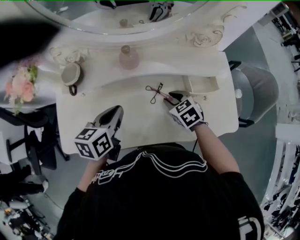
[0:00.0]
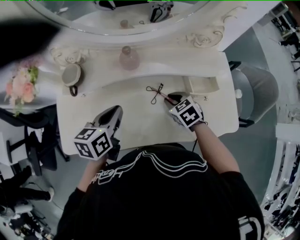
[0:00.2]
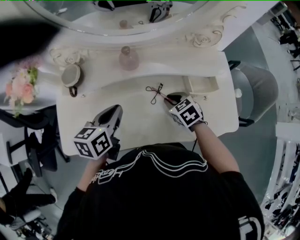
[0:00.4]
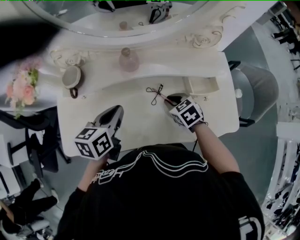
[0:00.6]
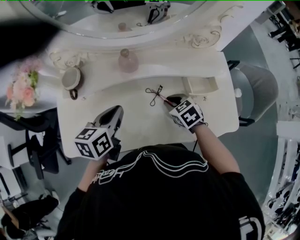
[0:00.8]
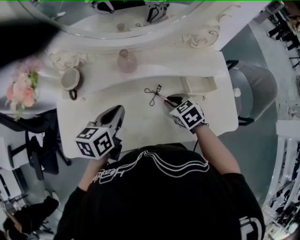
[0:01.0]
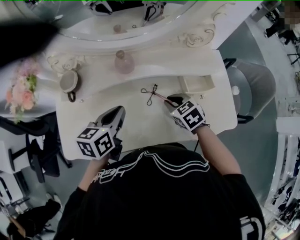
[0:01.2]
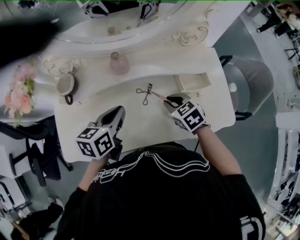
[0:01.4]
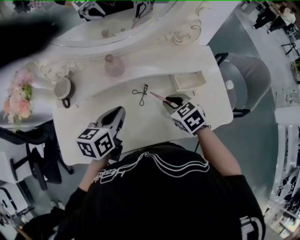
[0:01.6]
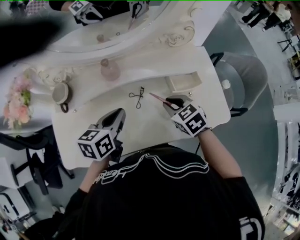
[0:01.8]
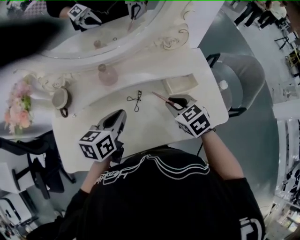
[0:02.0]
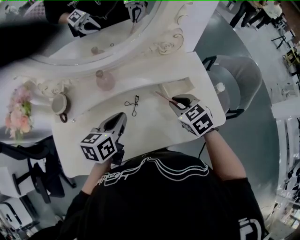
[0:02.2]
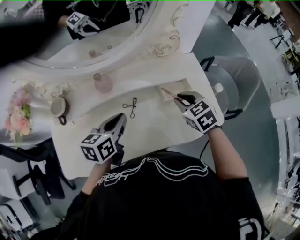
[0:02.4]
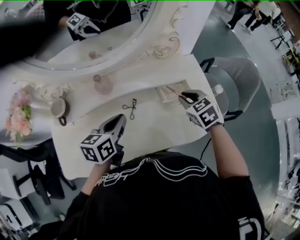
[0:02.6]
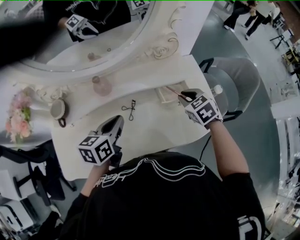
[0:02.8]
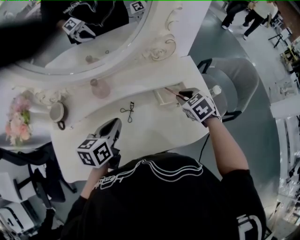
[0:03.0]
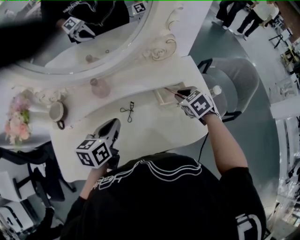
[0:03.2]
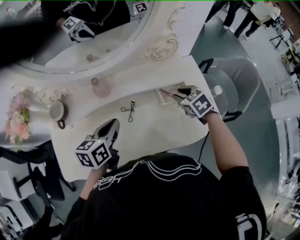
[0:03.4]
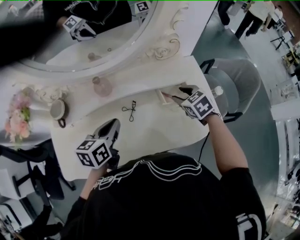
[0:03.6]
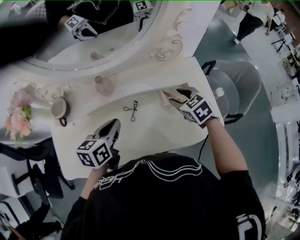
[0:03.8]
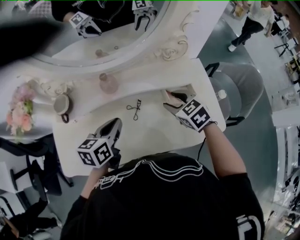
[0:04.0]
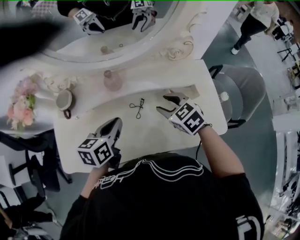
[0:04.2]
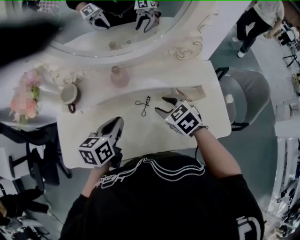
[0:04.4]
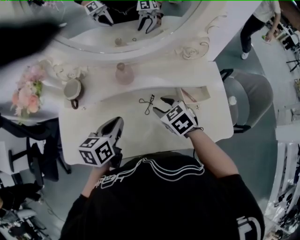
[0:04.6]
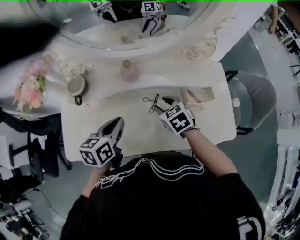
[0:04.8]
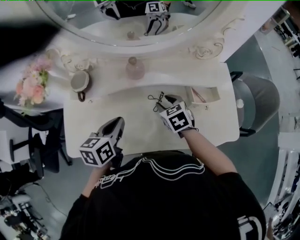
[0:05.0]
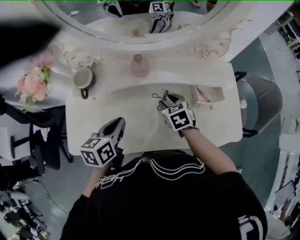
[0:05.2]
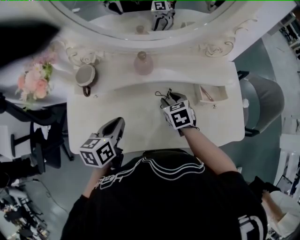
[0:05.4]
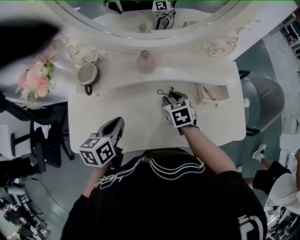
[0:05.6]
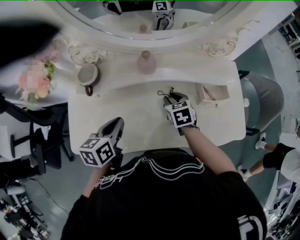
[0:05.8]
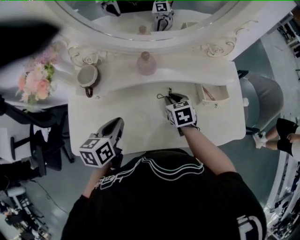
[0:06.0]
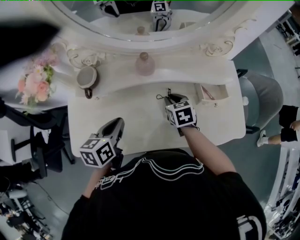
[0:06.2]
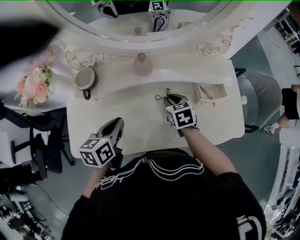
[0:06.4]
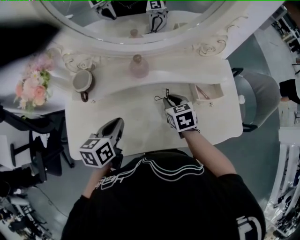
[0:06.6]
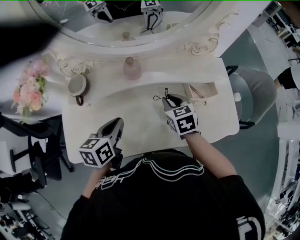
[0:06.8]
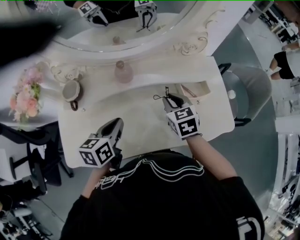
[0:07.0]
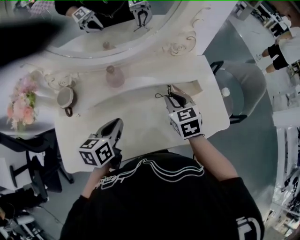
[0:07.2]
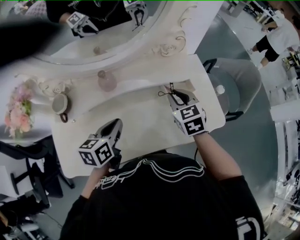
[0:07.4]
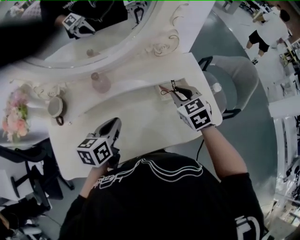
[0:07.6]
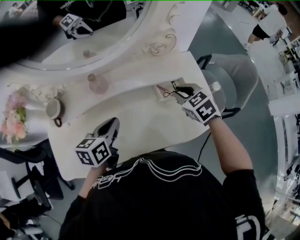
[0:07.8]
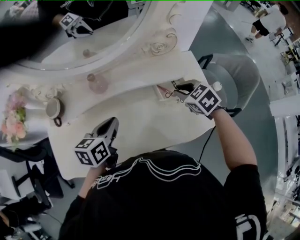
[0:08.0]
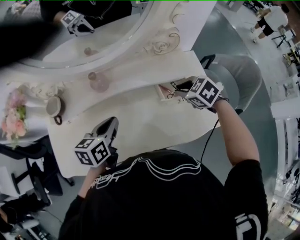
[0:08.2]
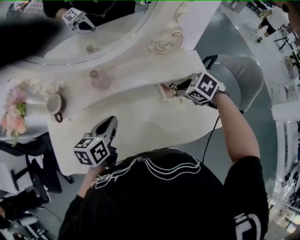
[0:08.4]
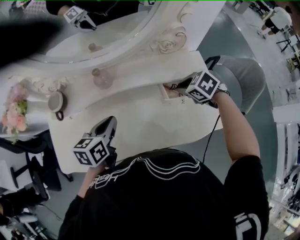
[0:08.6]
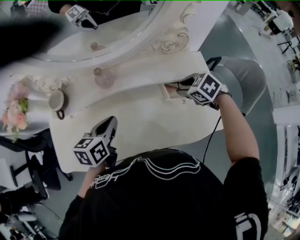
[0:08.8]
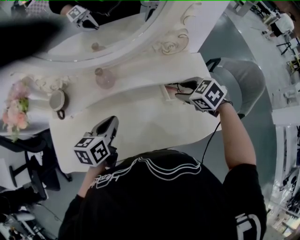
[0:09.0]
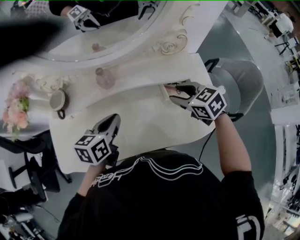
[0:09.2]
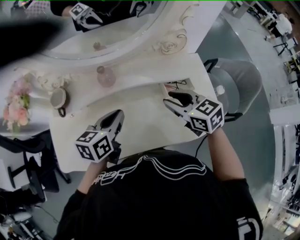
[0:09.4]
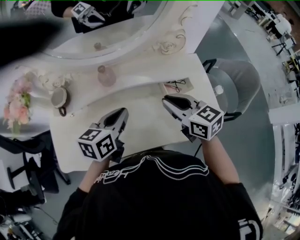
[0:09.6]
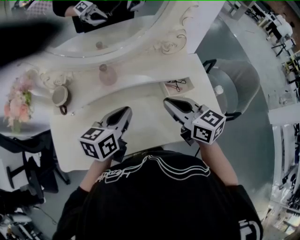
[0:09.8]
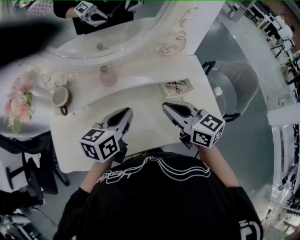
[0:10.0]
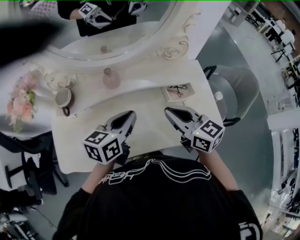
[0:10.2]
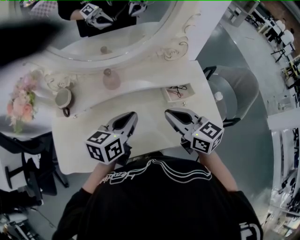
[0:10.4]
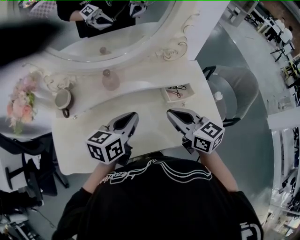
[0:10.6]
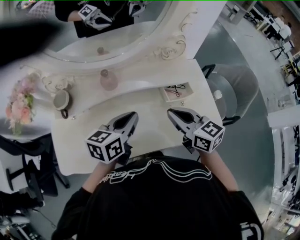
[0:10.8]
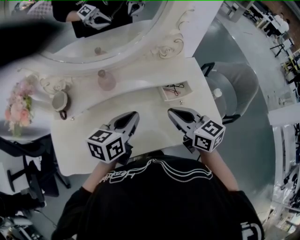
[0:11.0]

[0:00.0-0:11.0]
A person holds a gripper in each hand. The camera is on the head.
0.0 to 1.6 s: The left gripper moves approximately 5 cm; the right gripper is displaced upward by approximately 5 cm.
1.6 to 3.2 s: The right gripper heads to the right and forward, covering about 15 cm.
3.2 to 4.8 s: The left gripper heads to the left, covering some 10 cm. Meanwhile the right gripper heads to the left, covering roughly 20 cm, and opens.
4.8 to 6.2 s: The left gripper moves to the left, some 5 cm. The right gripper closes up.
6.2 to 7.8 s: The left gripper moves to the right, approximately 15 cm, while the right gripper is displaced to the right and upward by approximately 25 cm.
7.8 to 9.4 s: The right gripper travels to the left and upward by some 10 cm, and rotates approximately 30 degrees.
9.4 to 11.0 s: The right gripper ends up some 5 cm from where it was, and closes its fingers; the left gripper shifts about 5 cm to the right.

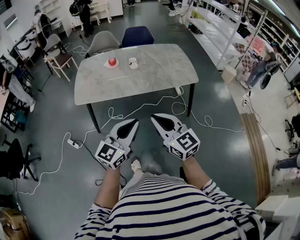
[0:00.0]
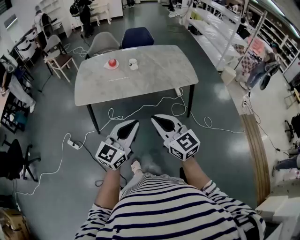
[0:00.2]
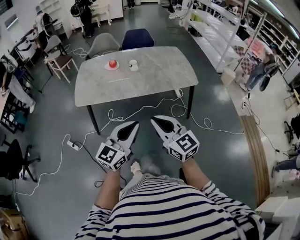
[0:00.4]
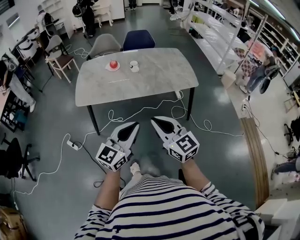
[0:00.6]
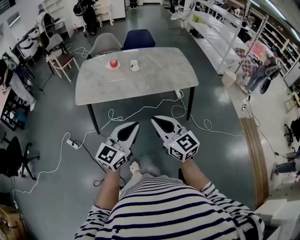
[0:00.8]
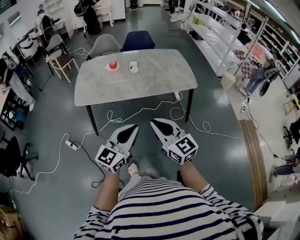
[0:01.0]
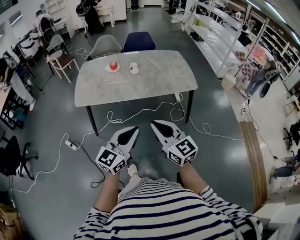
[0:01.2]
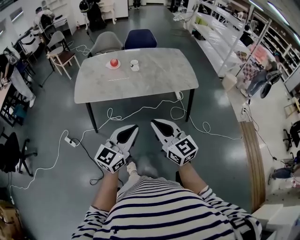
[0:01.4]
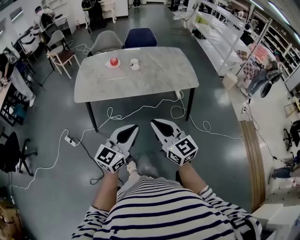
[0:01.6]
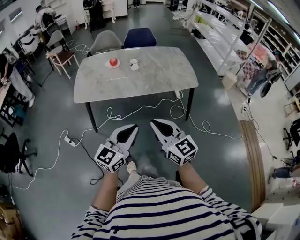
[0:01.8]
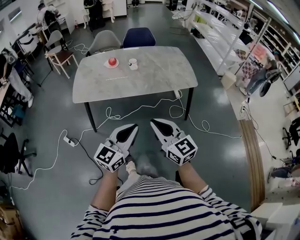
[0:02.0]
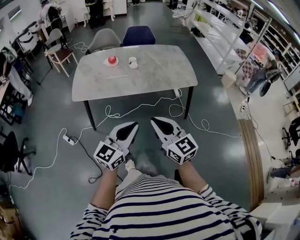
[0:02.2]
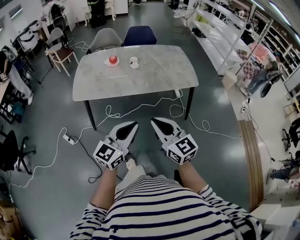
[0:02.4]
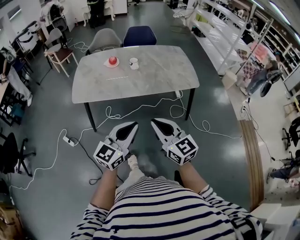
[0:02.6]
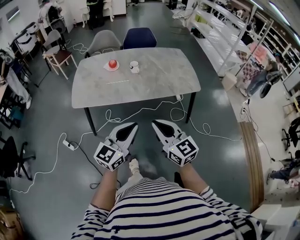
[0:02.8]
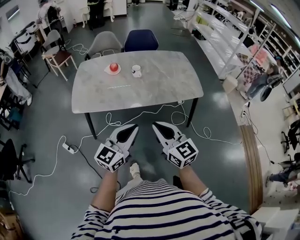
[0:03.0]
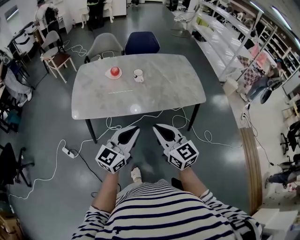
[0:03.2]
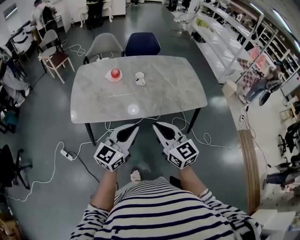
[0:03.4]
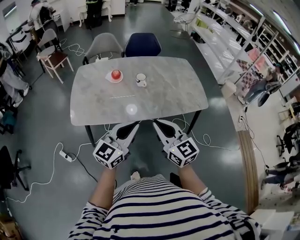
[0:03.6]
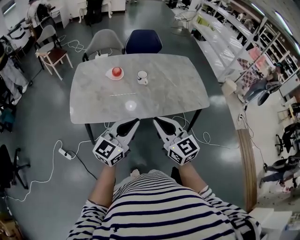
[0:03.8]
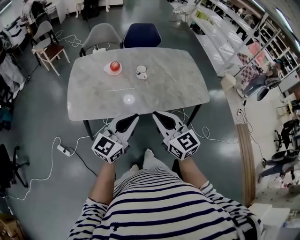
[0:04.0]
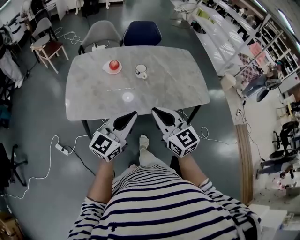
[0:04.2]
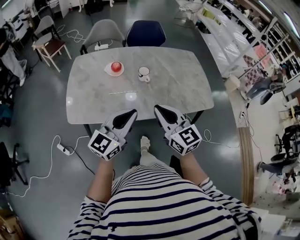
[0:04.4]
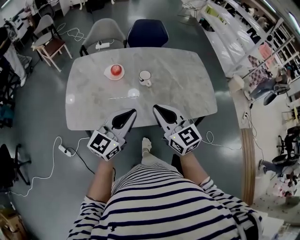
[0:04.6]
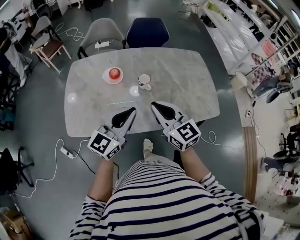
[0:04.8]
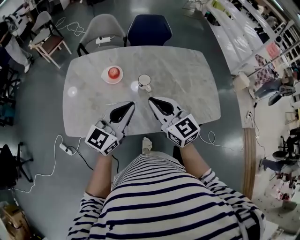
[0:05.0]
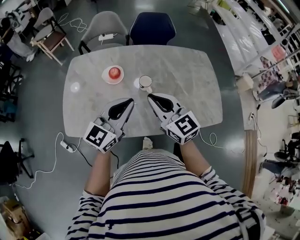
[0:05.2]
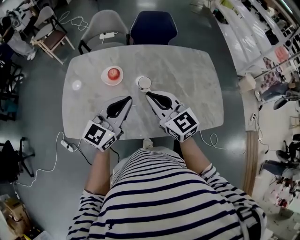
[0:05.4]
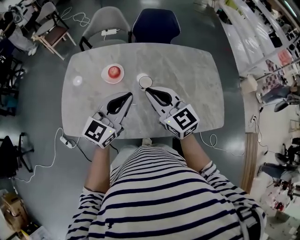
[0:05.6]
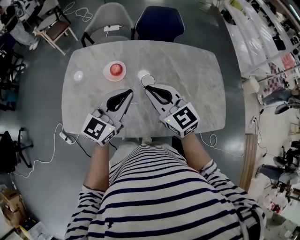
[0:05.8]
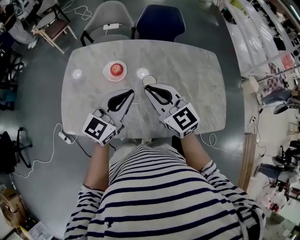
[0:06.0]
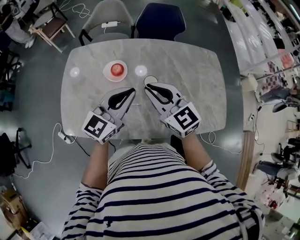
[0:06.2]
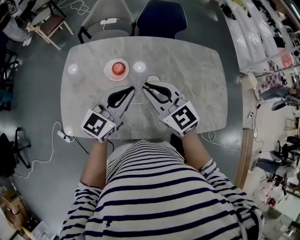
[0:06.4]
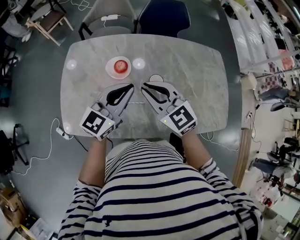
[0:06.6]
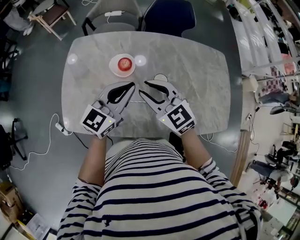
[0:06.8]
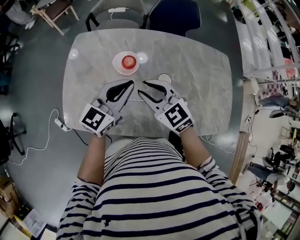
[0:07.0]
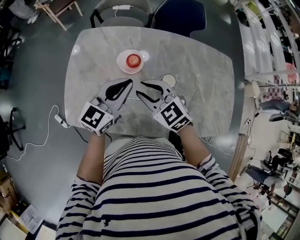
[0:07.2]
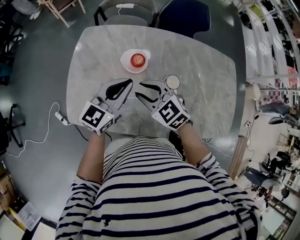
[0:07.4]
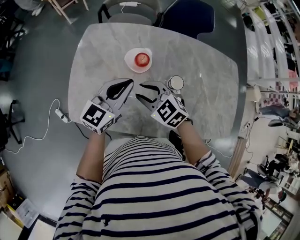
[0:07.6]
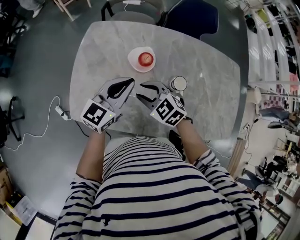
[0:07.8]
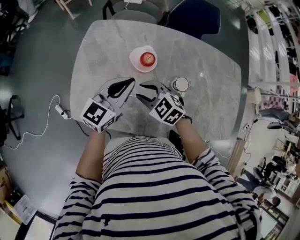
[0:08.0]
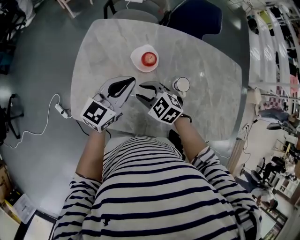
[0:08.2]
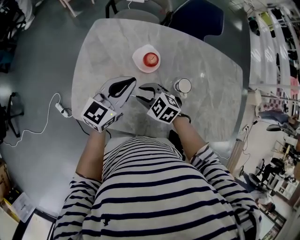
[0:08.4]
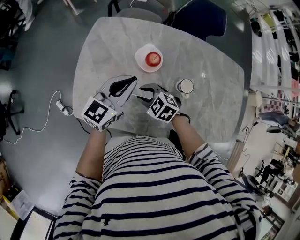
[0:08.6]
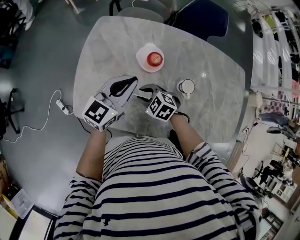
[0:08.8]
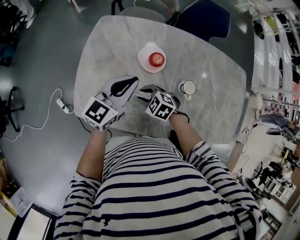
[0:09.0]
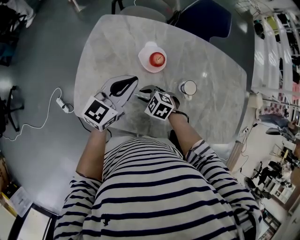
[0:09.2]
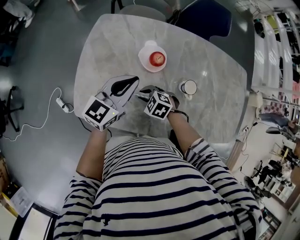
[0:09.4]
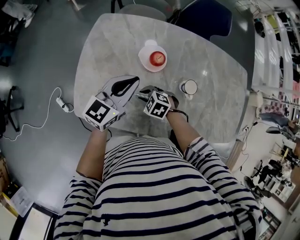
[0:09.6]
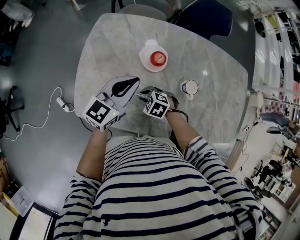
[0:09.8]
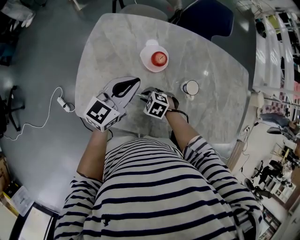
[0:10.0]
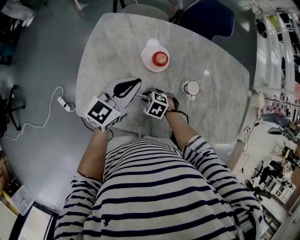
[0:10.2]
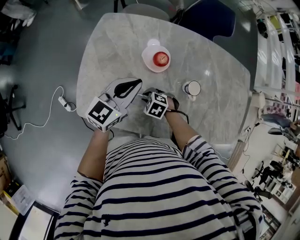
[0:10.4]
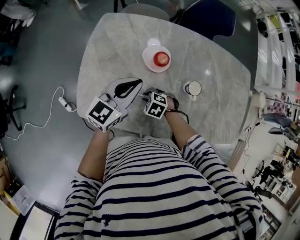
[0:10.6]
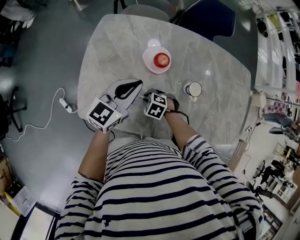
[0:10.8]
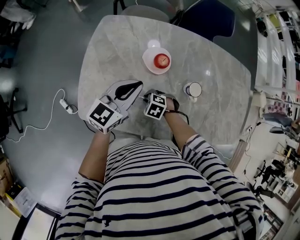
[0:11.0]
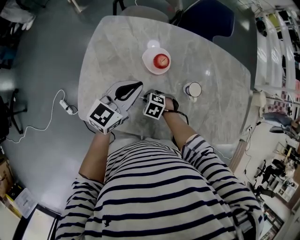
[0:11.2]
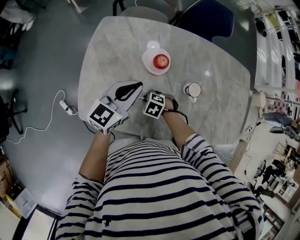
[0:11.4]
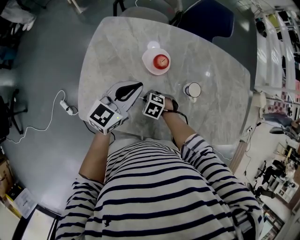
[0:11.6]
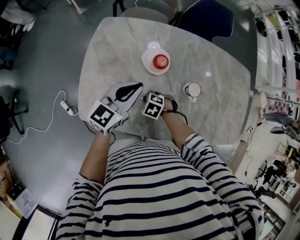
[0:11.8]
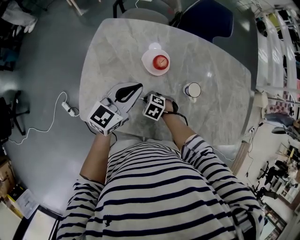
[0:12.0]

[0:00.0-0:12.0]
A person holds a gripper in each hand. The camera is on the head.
0.0 to 1.6 s: The grippers make only small movements.
1.6 to 3.0 s: Both grippers move forward, roughly 10 cm.
3.0 to 4.4 s: The left gripper moves forward and to the left, roughly 20 cm, while the right gripper heads forward, covering some 20 cm.
4.4 to 6.0 s: The grippers both shift forward by some 25 cm.
6.0 to 7.6 s: The right gripper moves to the left and downward, some 20 cm, swivels approximately 40 degrees, and opens its fingers; the left gripper goes some 15 cm to the left, forward and downward.
7.6 to 9.0 s: The right gripper is displaced downward by roughly 15 cm, and changes its angle by roughly 20 degrees.
9.0 to 10.4 s: The right gripper moves downward, roughly 5 cm.
10.4 to 12.0 s: There are only small adjustments of the grippers.

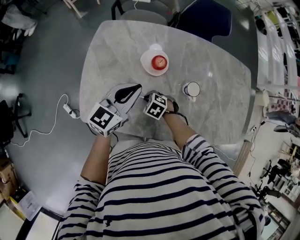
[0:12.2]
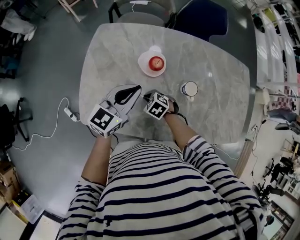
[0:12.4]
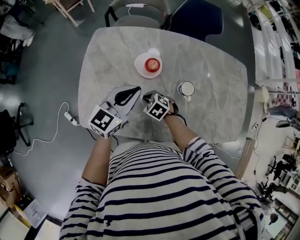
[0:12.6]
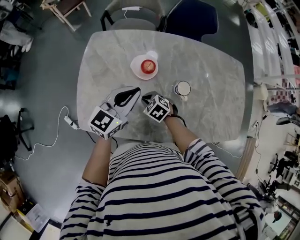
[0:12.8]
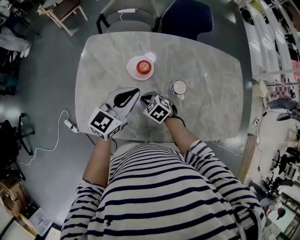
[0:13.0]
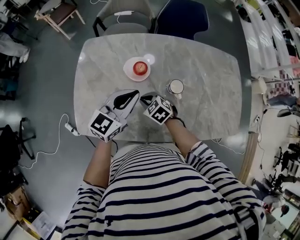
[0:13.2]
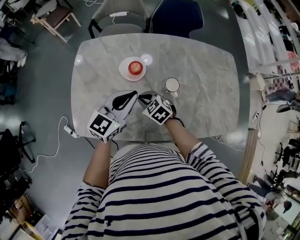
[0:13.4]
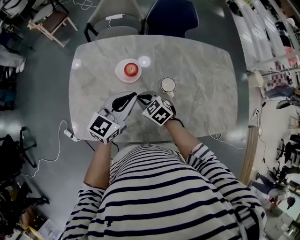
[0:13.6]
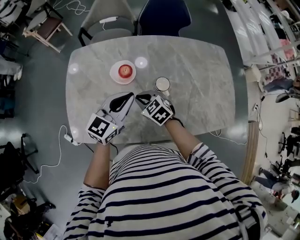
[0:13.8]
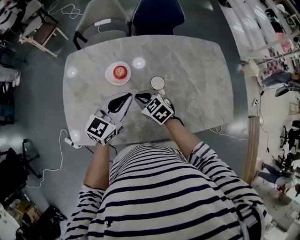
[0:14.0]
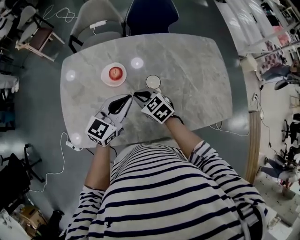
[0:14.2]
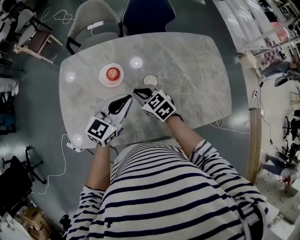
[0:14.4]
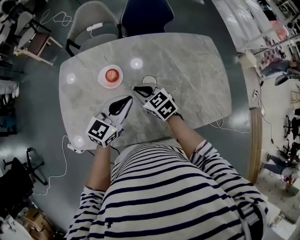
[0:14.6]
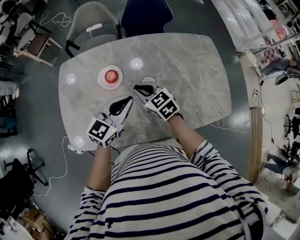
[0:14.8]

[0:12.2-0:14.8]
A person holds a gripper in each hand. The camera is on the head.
12.2 to 13.4 s: The left gripper is displaced to the right by some 10 cm; the right gripper heads upward and to the right, covering about 10 cm, and turns by approximately 30 degrees.
13.4 to 14.8 s: The right gripper heads to the right and upward, covering about 15 cm, and changes its angle by about 20 degrees; the left gripper is displaced to the right by approximately 10 cm.
